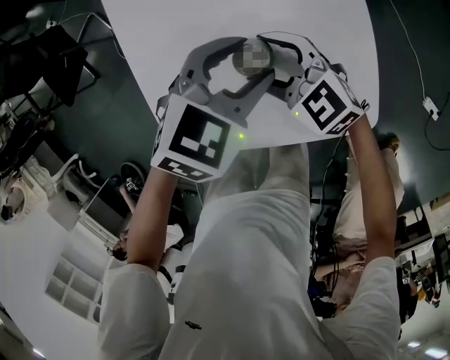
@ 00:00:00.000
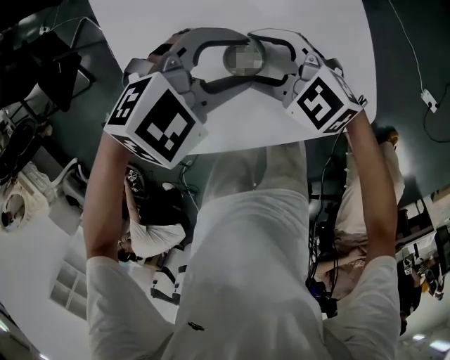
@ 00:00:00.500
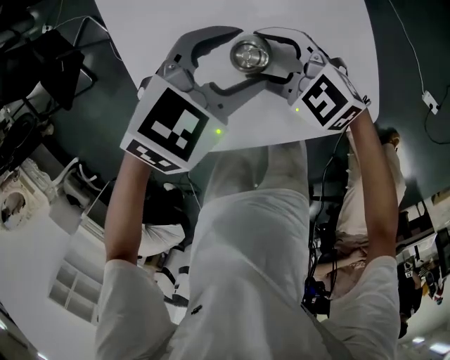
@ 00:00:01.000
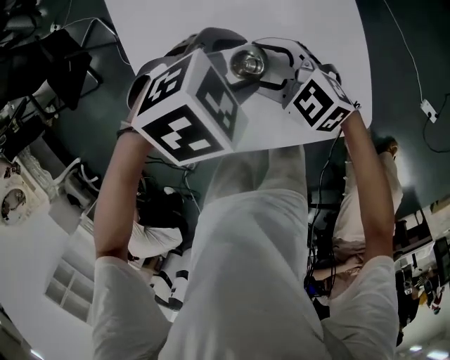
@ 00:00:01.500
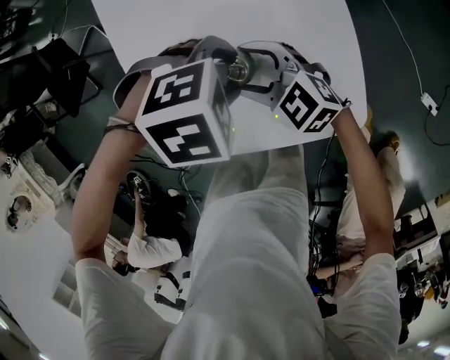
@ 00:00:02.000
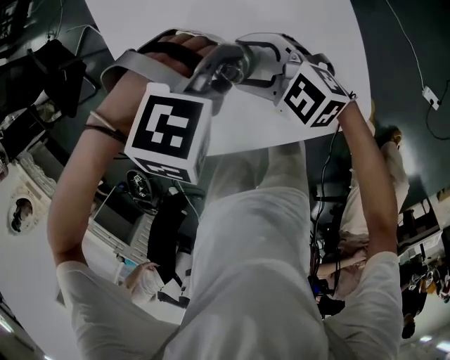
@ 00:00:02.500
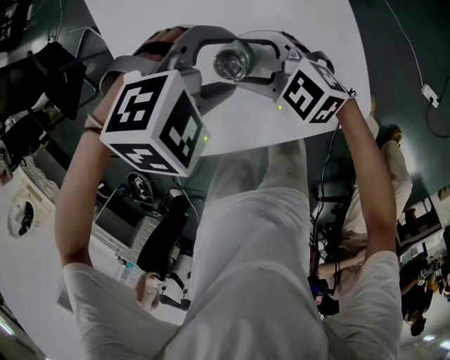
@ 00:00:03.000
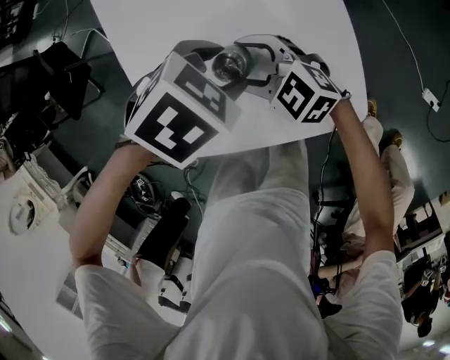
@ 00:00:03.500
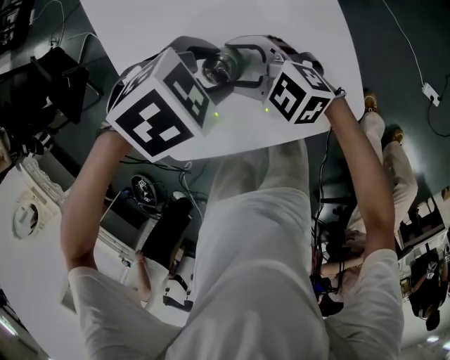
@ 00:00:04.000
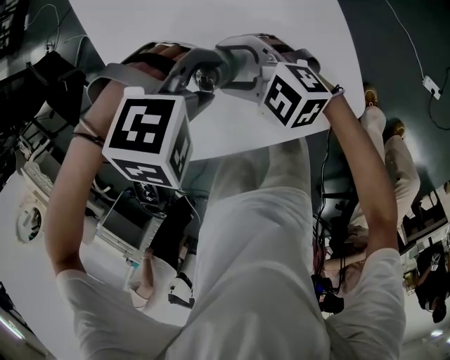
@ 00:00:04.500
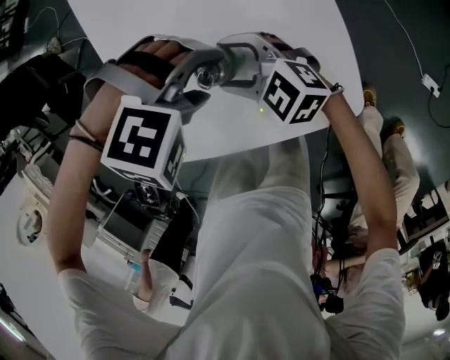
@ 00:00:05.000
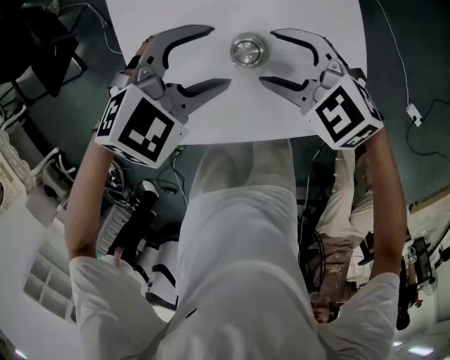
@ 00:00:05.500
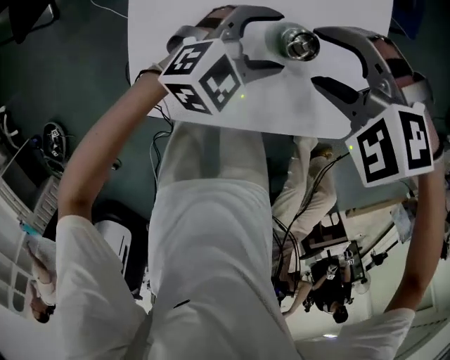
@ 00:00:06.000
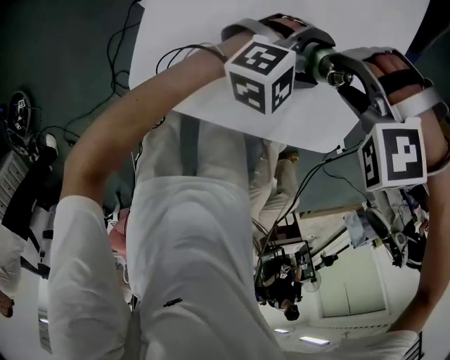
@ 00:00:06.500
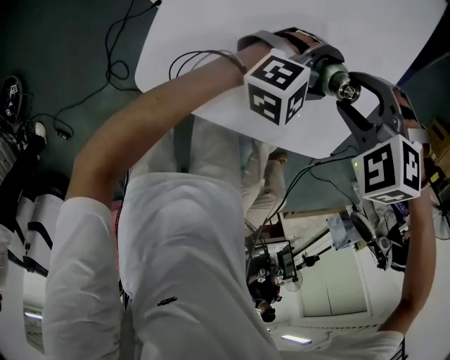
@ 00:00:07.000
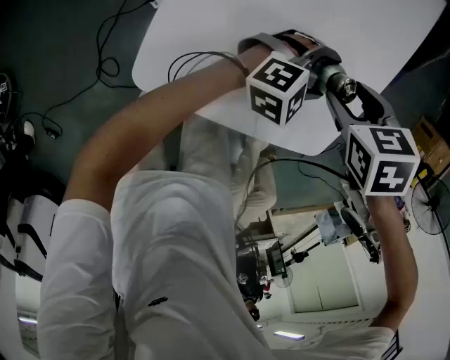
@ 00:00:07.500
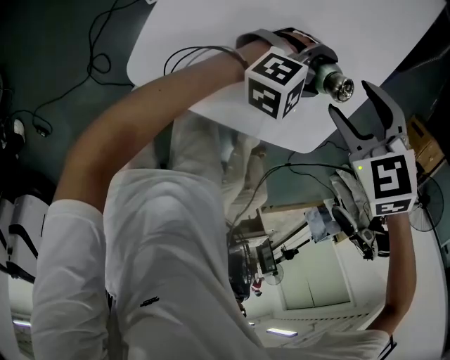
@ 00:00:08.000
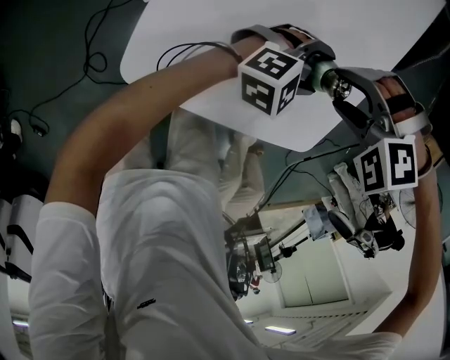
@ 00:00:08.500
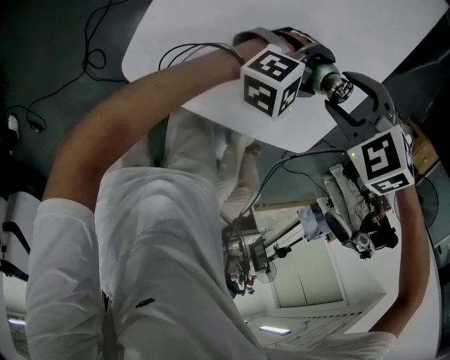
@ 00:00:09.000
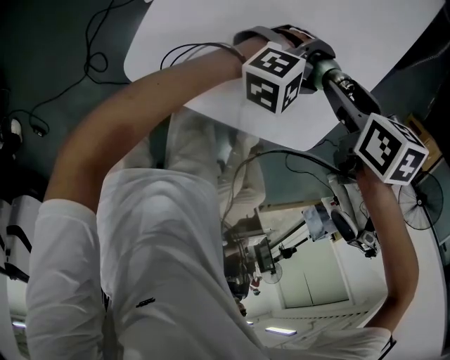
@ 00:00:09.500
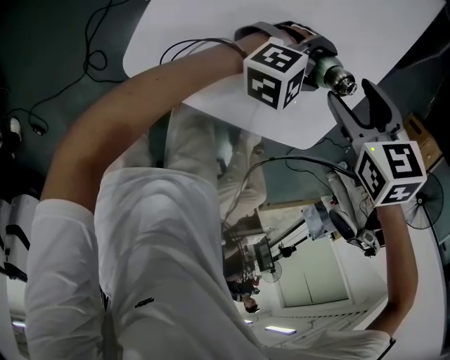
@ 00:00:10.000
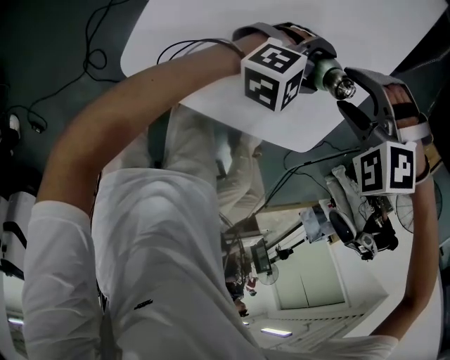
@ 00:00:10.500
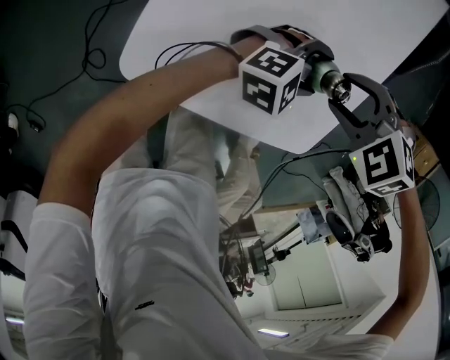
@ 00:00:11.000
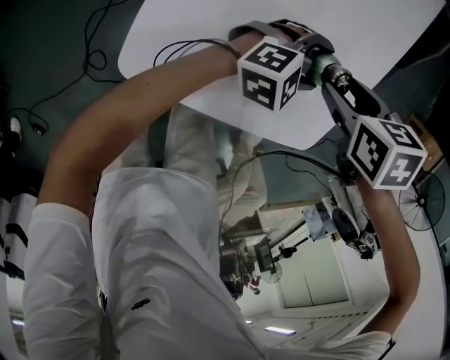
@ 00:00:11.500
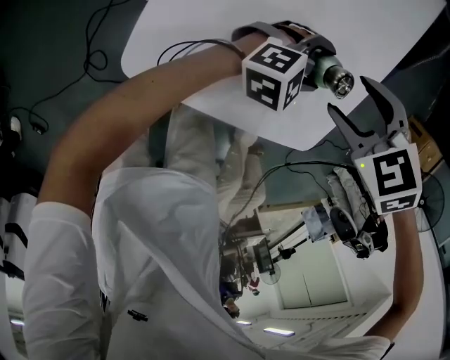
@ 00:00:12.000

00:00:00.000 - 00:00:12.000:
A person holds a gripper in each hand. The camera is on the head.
00:00:00.000 - 00:00:02.000: The left gripper rotates some 50 degrees.
00:00:04.000 - 00:00:06.000: The right gripper moves upward, roughly 10 cm, and tips its fingers downward by roughly 40 degrees; the left gripper angles its fingers upward, by roughly 40 degrees.
00:00:06.000 - 00:00:08.000: The right gripper swivels approximately 30 degrees. The left gripper shifts by some 5 cm.
00:00:08.000 - 00:00:10.000: The right gripper turns by some 20 degrees.
00:00:10.000 - 00:00:12.000: The right gripper swivels approximately 30 degrees.

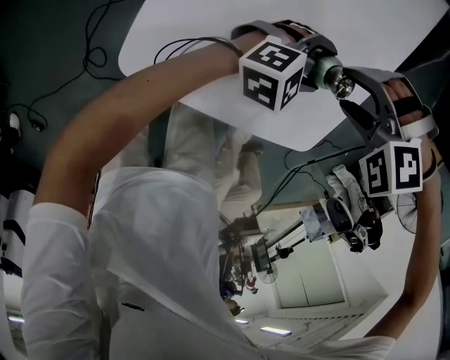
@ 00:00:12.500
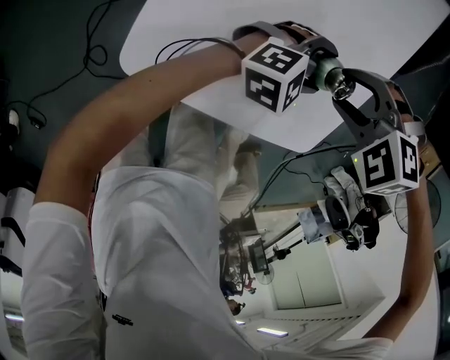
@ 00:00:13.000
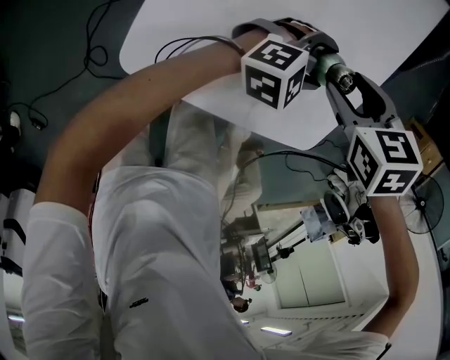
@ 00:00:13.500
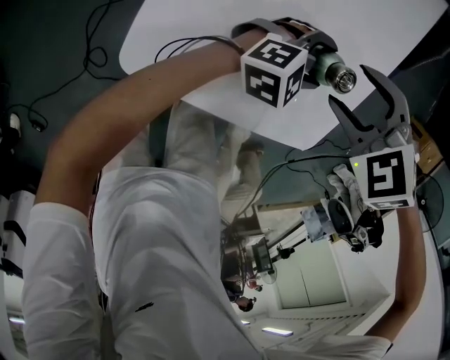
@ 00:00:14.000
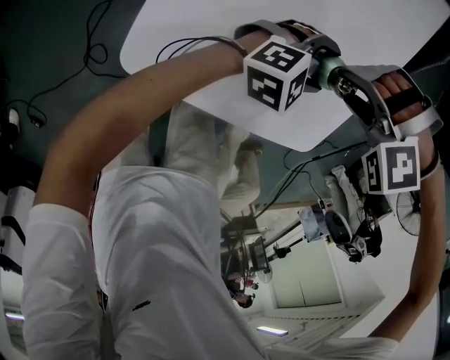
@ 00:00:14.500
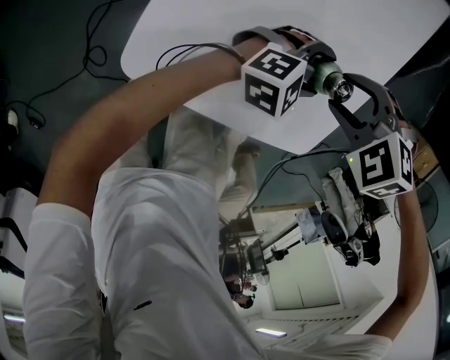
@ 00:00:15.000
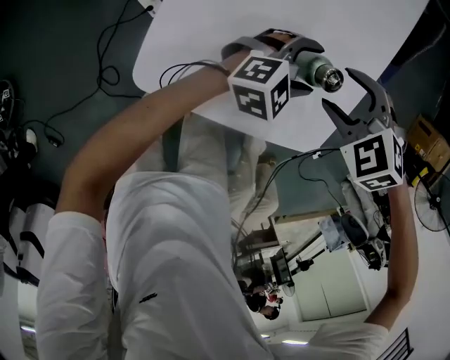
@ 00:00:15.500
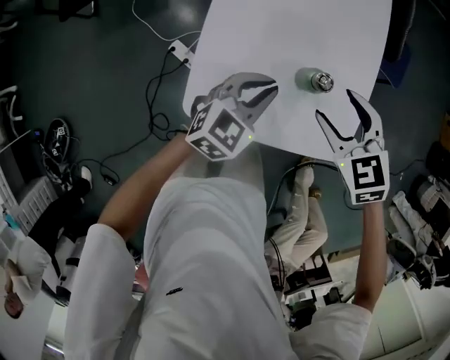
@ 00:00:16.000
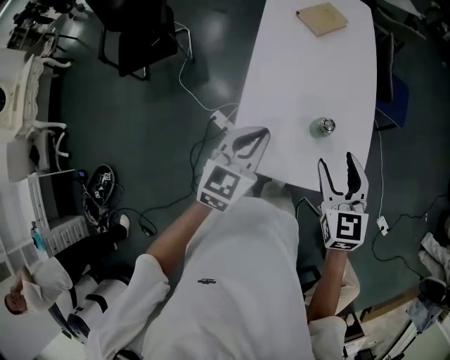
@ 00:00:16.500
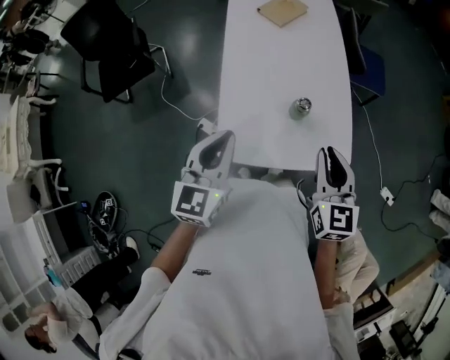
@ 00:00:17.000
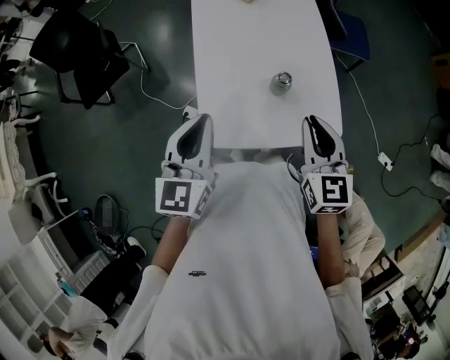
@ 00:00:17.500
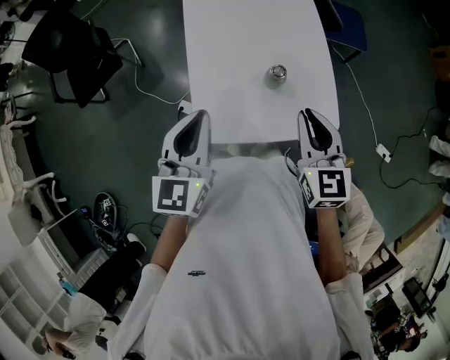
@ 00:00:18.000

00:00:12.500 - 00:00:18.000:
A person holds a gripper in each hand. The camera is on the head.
00:00:14.500 - 00:00:16.000: The right gripper is displaced upward by about 10 cm, and rotates around the line of its fingers by approximately 90 degrees, clockwise from behind, while the left gripper shifts by about 20 cm, swivels about 20 degrees, and closes.
00:00:16.000 - 00:00:18.000: Both grippers move upward and backward, roughly 25 cm. The right gripper tips its fingers upward by about 30 degrees, and closes, while the left gripper swivels some 30 degrees.

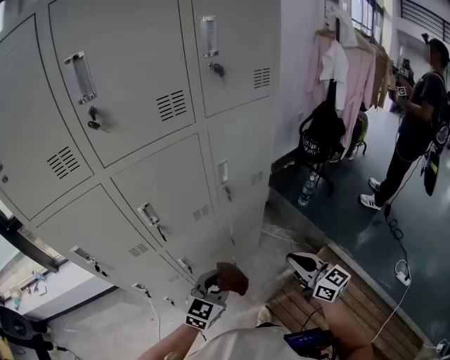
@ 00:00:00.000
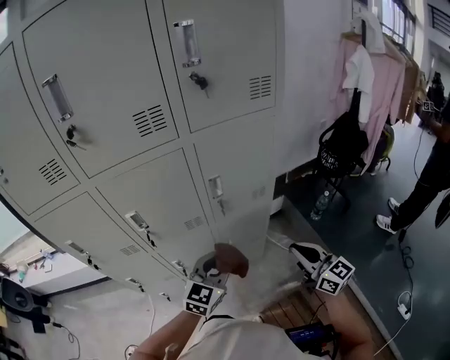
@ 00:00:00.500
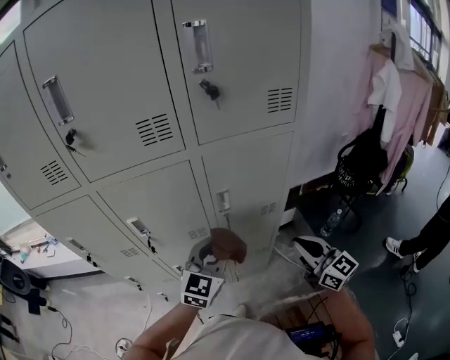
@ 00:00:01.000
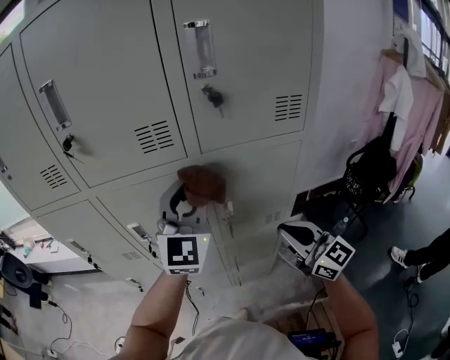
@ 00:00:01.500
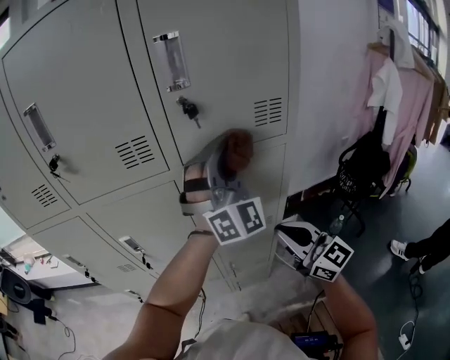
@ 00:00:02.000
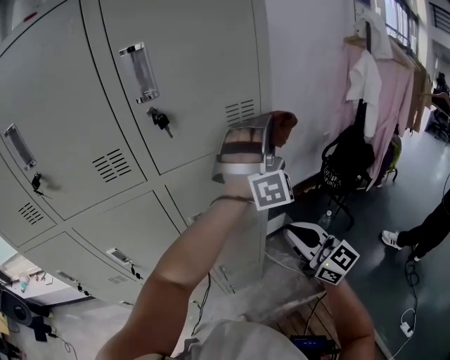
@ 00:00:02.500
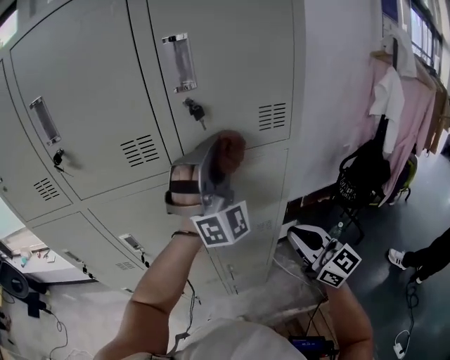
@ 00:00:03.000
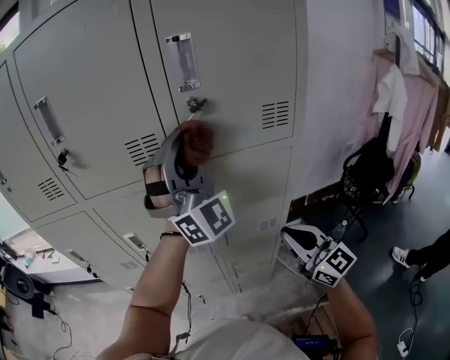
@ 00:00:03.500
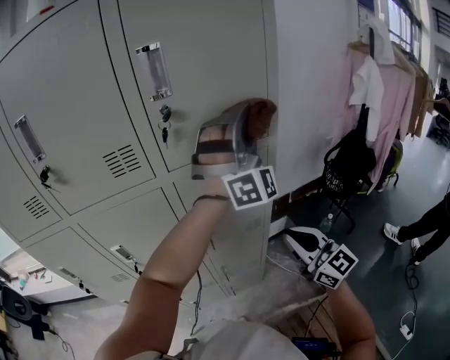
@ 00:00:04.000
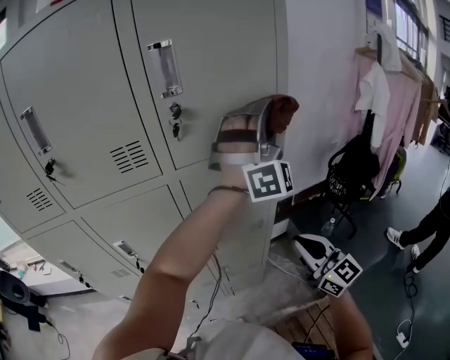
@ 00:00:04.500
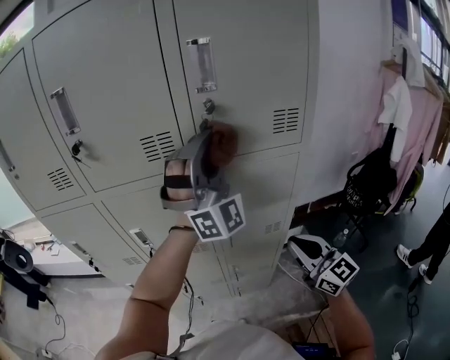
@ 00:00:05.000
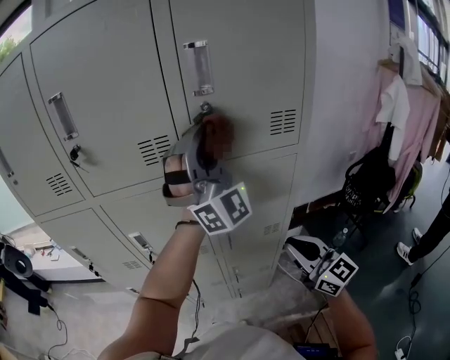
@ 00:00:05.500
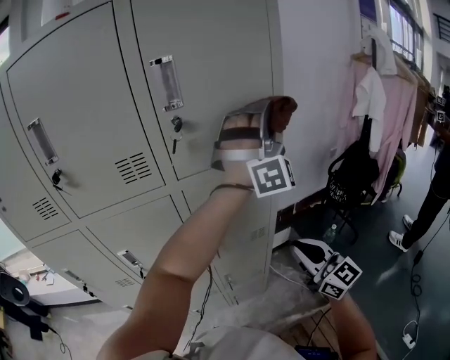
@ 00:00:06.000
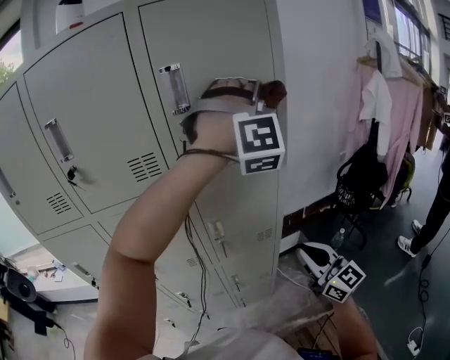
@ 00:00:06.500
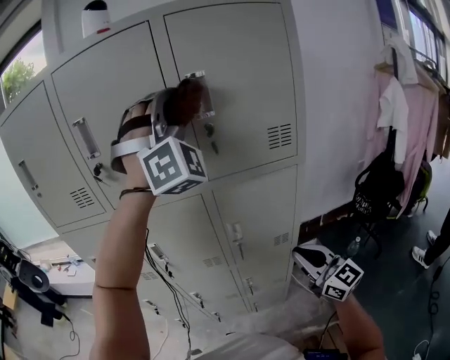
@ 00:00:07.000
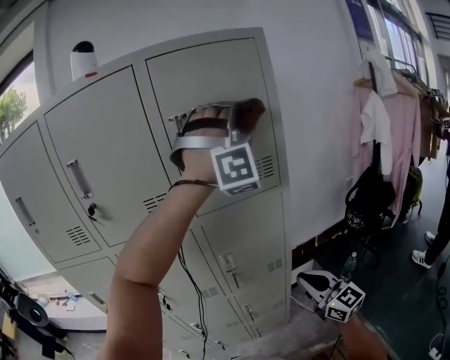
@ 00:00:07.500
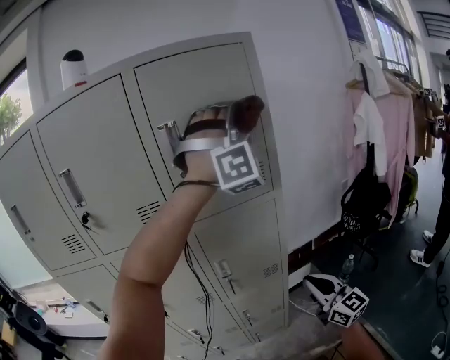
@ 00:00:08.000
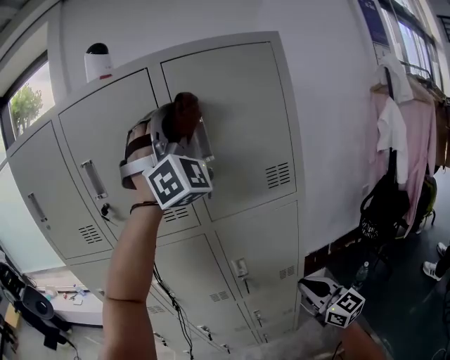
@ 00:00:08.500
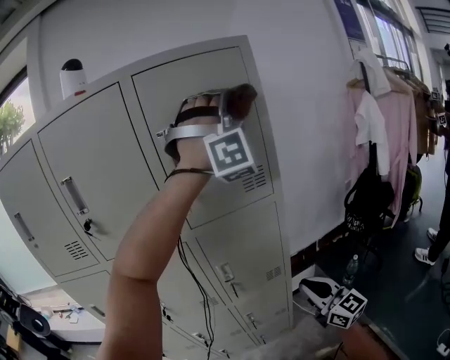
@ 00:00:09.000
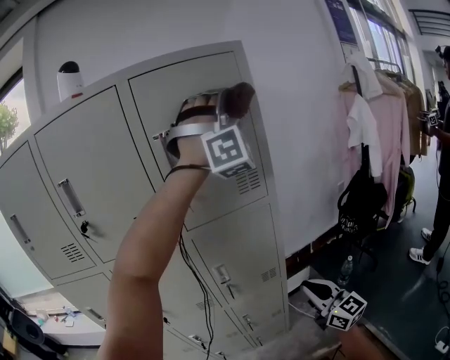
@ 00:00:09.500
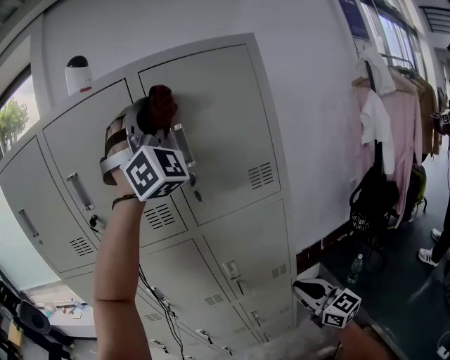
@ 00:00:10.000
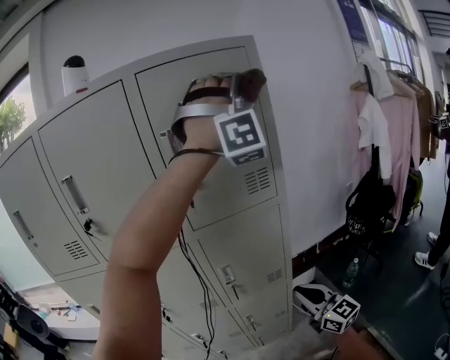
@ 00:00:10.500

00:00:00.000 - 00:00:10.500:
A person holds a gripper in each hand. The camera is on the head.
00:00:00.000 - 00:00:02.000: The right gripper moves approximately 25 cm, and changes its angle by approximately 30 degrees.
00:00:02.000 - 00:00:04.000: The right gripper shifts by roughly 5 cm.
00:00:06.500 - 00:00:08.500: The right gripper changes place by about 5 cm.
